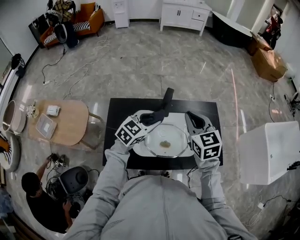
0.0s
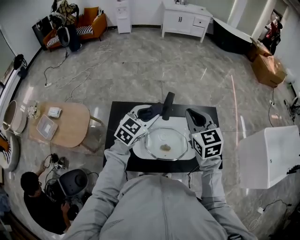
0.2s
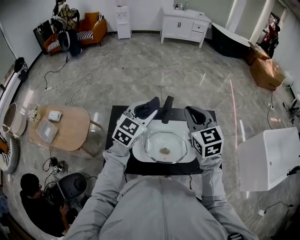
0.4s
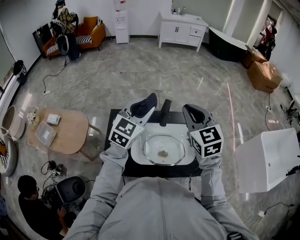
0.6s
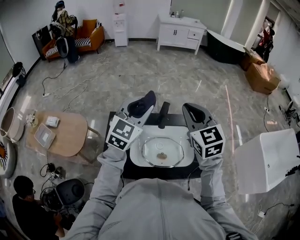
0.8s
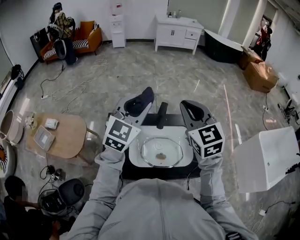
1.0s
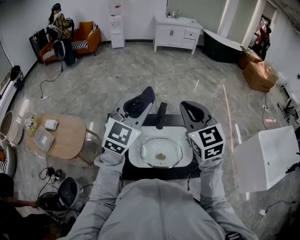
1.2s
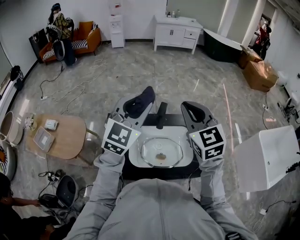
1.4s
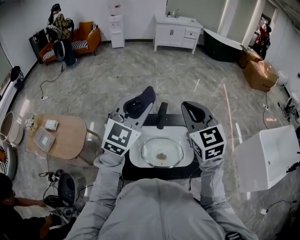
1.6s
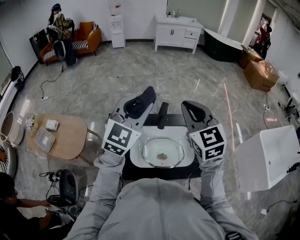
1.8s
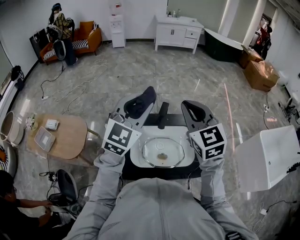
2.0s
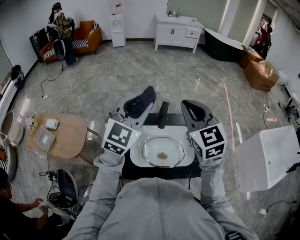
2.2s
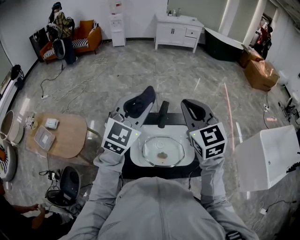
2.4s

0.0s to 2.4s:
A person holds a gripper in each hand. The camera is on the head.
0.0s to 1.2s: The right gripper moves upward, about 15 cm. The left gripper is displaced upward by about 25 cm, and rotates approximately 30 degrees.
1.2s to 2.4s: Both grippers stay put.

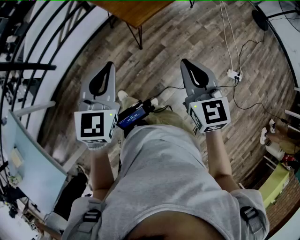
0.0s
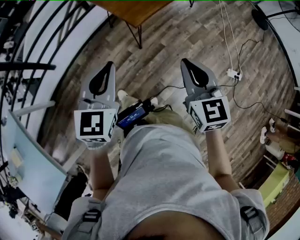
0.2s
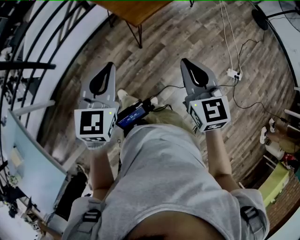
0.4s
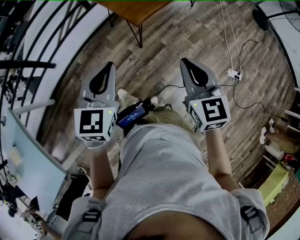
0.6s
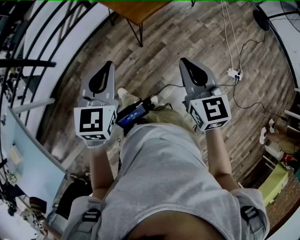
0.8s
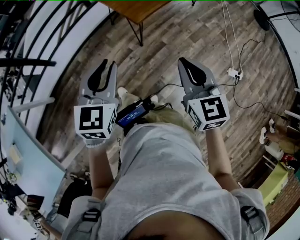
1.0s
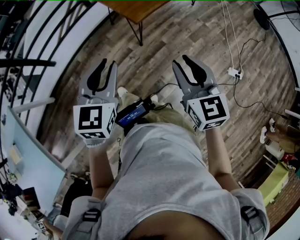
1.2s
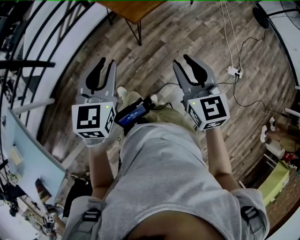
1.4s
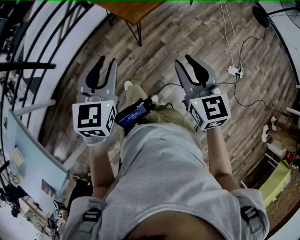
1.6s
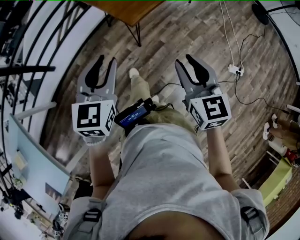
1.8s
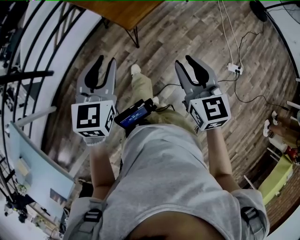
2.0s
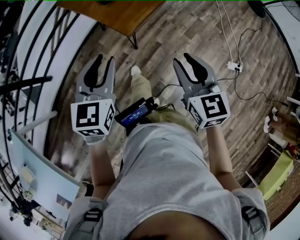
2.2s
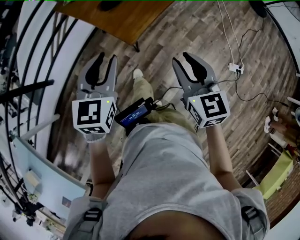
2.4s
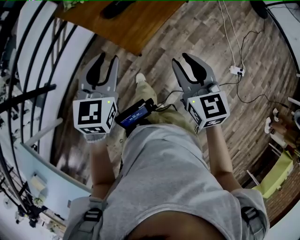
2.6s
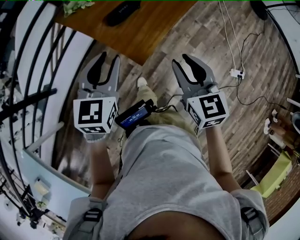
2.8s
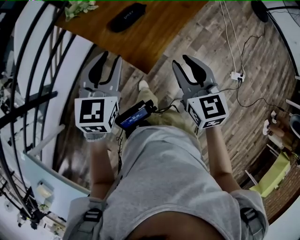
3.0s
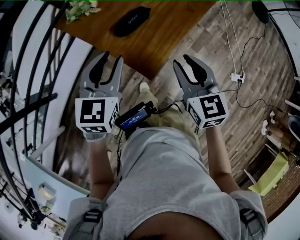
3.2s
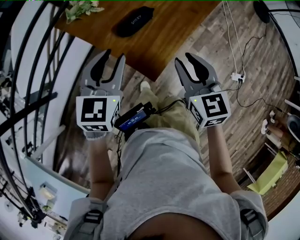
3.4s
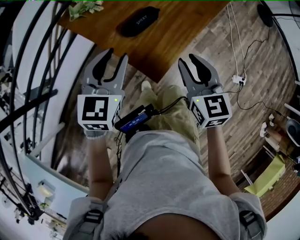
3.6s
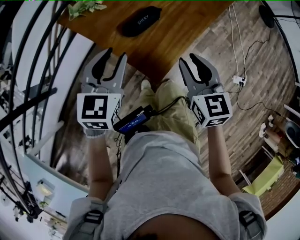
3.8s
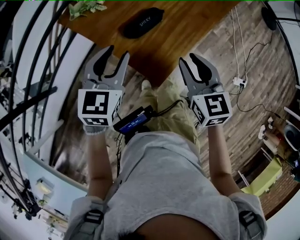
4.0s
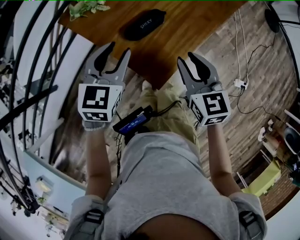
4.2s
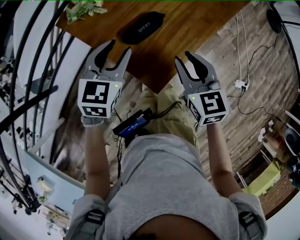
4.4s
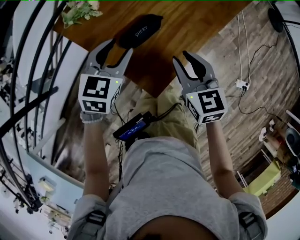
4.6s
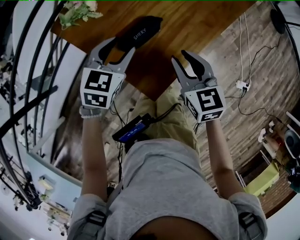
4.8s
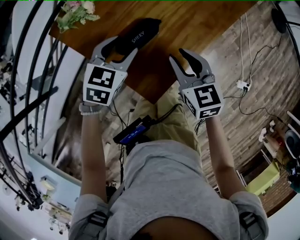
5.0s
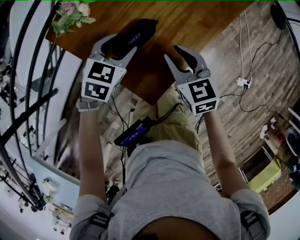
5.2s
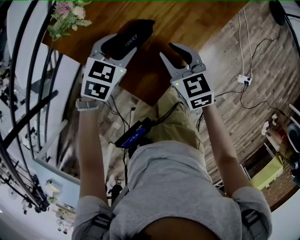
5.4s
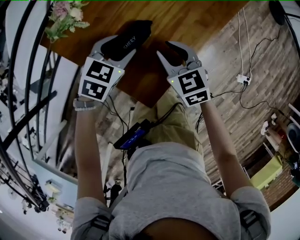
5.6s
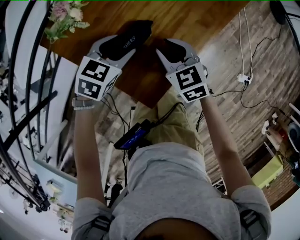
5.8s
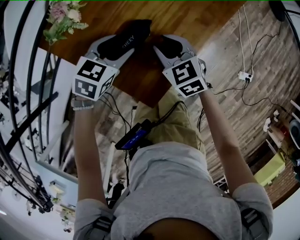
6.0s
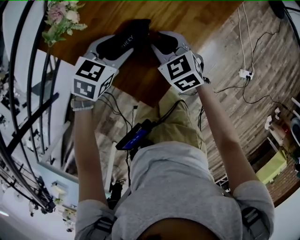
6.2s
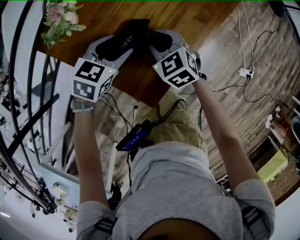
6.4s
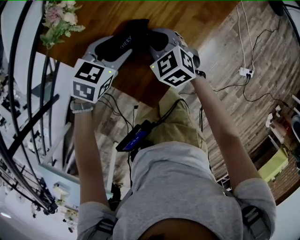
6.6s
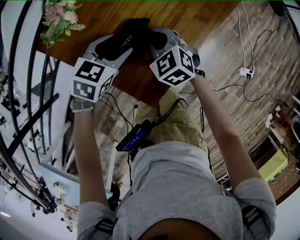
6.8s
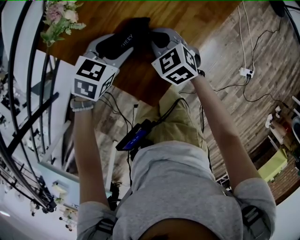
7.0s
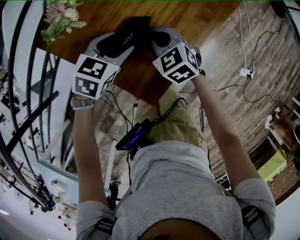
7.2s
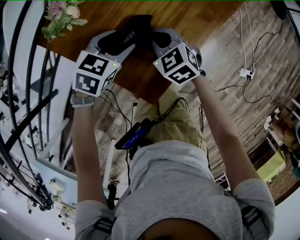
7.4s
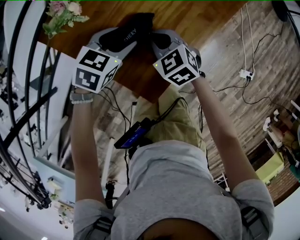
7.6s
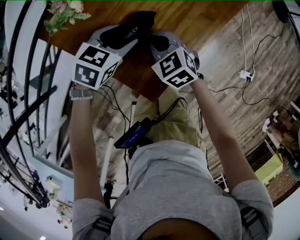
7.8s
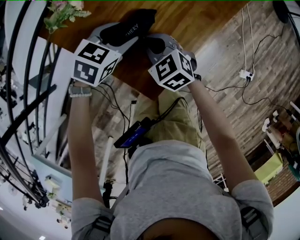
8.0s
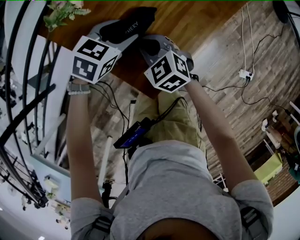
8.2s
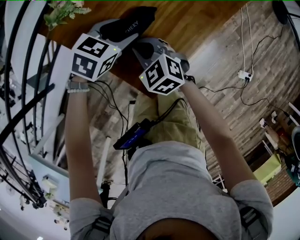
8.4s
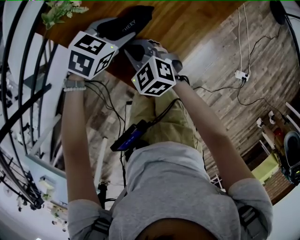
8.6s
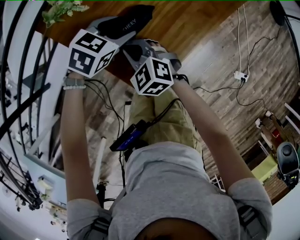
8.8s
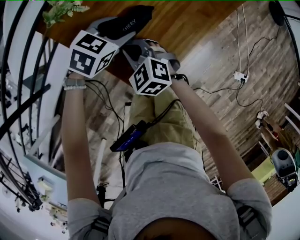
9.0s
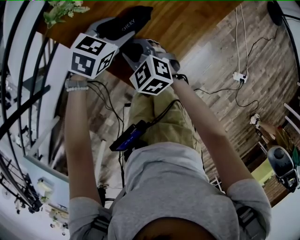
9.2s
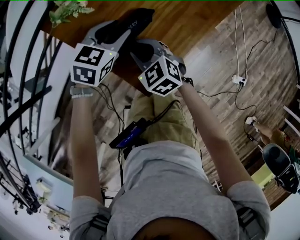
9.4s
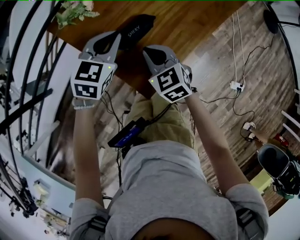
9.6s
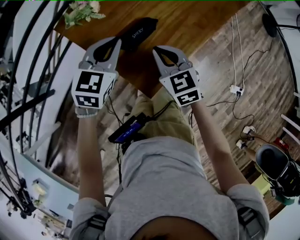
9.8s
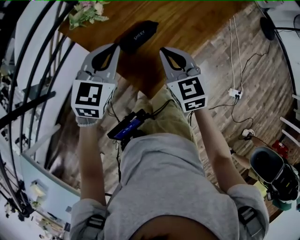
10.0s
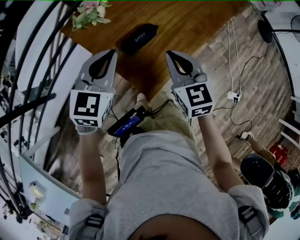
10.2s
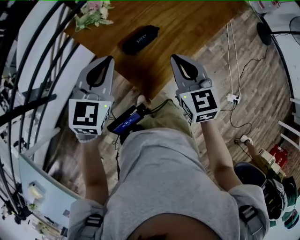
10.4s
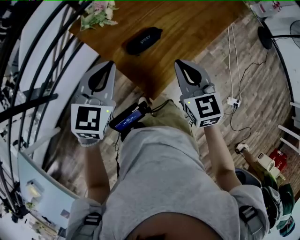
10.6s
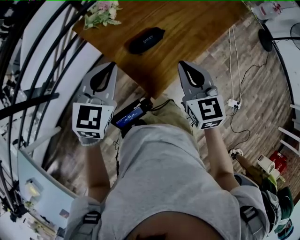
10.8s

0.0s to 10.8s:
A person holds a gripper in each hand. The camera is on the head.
0.0s to 1.6s: The right gripper opens its fingers; the left gripper opens up.
1.6s to 3.0s: The two grippers go approximately 25 cm forward.
3.0s to 4.6s: The two grippers go some 15 cm forward and downward.
4.6s to 6.2s: The left gripper moves downward, roughly 5 cm, and turns by some 20 degrees. Meanwhile the right gripper travels downward and forward by about 10 cm.
6.2s to 7.8s: The right gripper closes.
7.8s to 9.2s: The right gripper moves backward, about 5 cm, and opens up.
9.2s to 10.8s: The right gripper is displaced upward and to the right by about 25 cm, swivels approximately 30 degrees, and closes its fingers. The left gripper shifts some 25 cm upward, backward and to the left, swivels about 30 degrees, and closes its fingers.

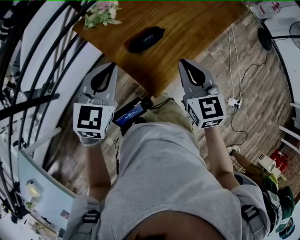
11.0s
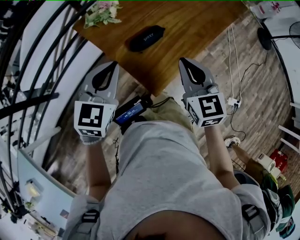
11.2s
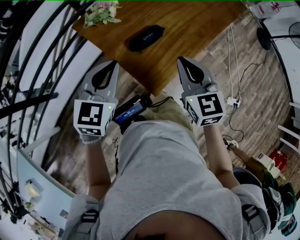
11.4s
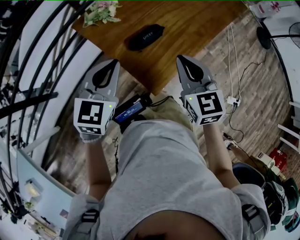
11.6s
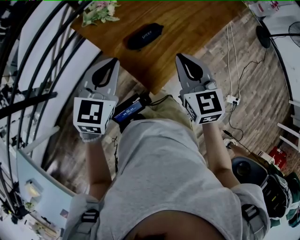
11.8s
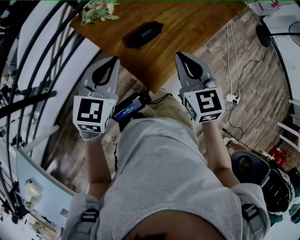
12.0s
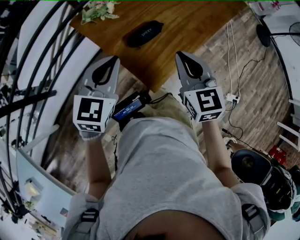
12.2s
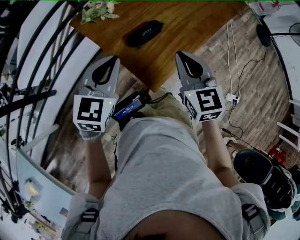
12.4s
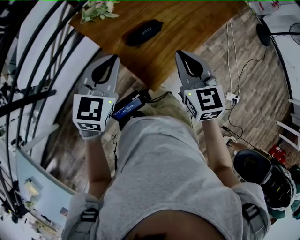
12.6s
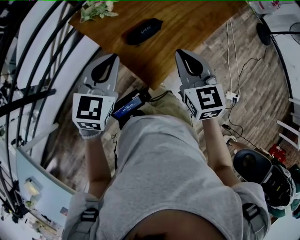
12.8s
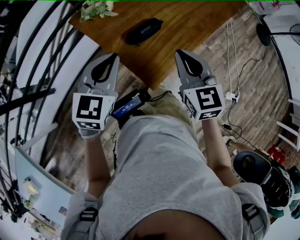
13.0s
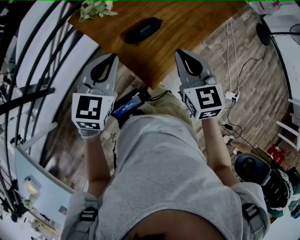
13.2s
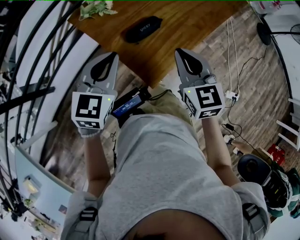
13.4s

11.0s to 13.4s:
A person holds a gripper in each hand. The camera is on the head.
11.0s to 12.2s: The two grippers keep their place.
12.2s to 13.4s: Neither gripper changes place.

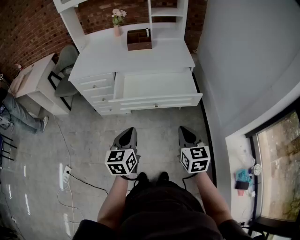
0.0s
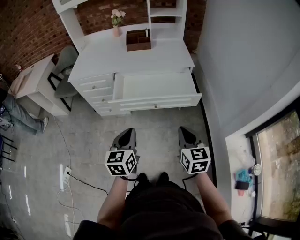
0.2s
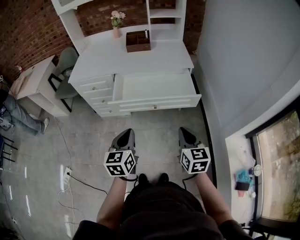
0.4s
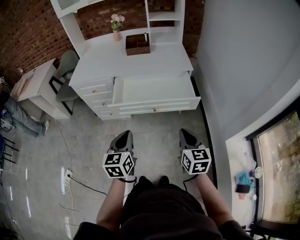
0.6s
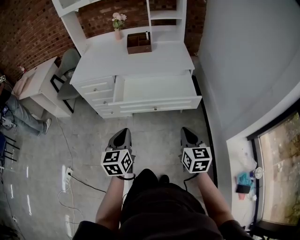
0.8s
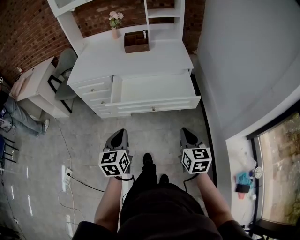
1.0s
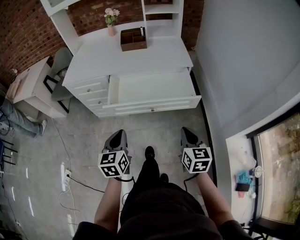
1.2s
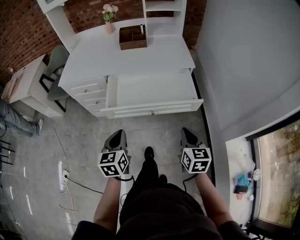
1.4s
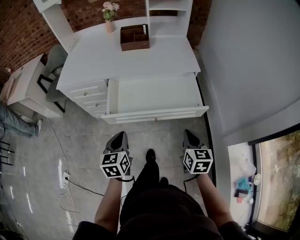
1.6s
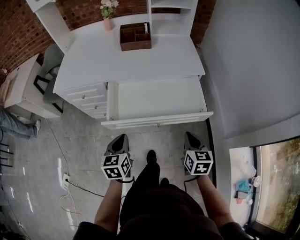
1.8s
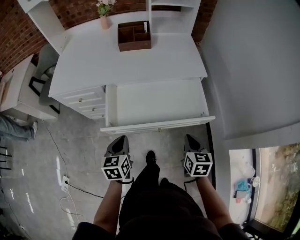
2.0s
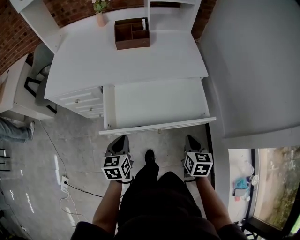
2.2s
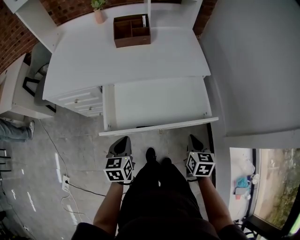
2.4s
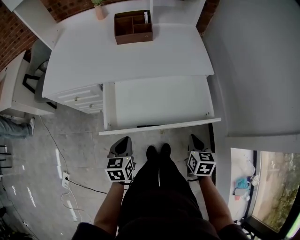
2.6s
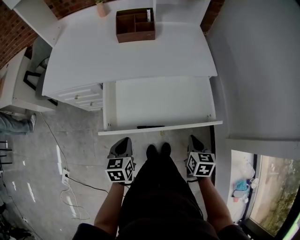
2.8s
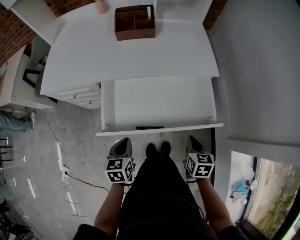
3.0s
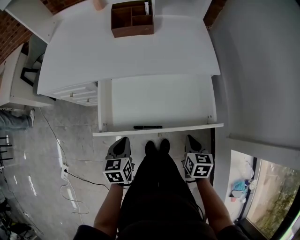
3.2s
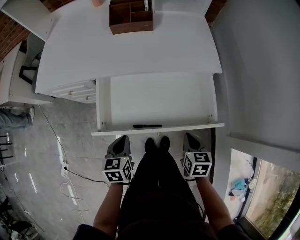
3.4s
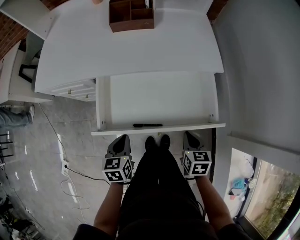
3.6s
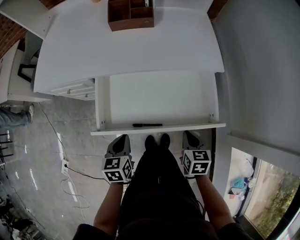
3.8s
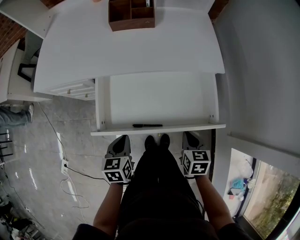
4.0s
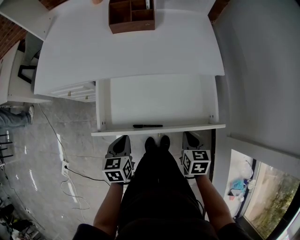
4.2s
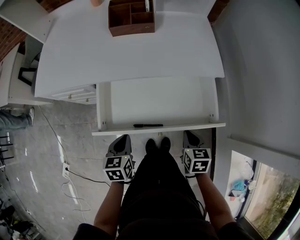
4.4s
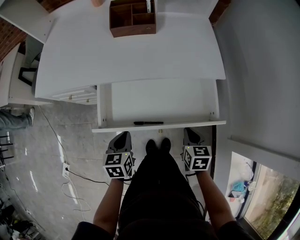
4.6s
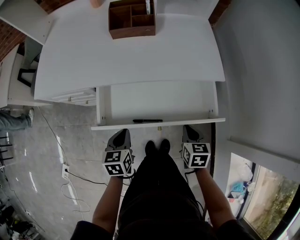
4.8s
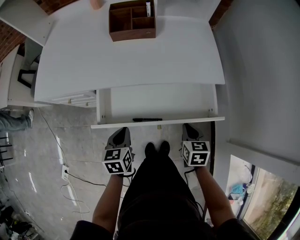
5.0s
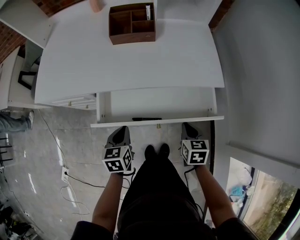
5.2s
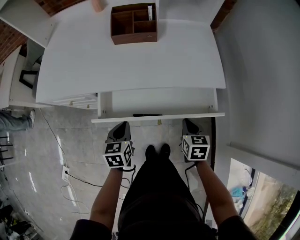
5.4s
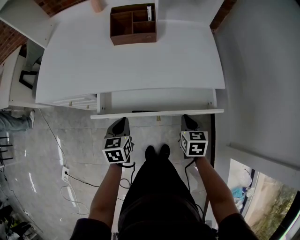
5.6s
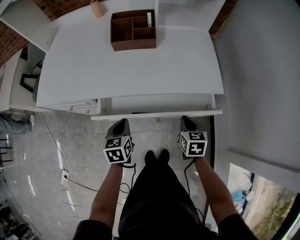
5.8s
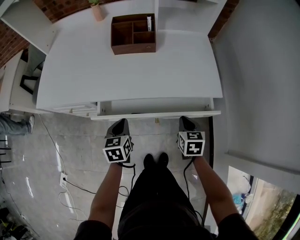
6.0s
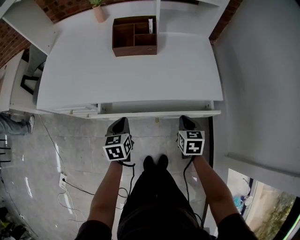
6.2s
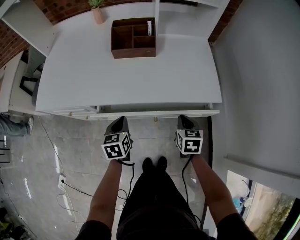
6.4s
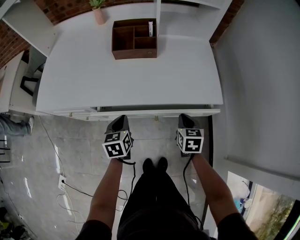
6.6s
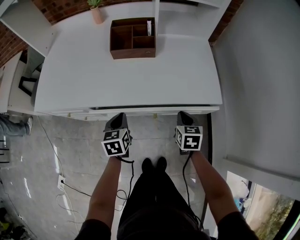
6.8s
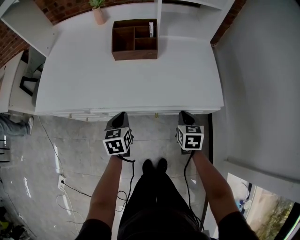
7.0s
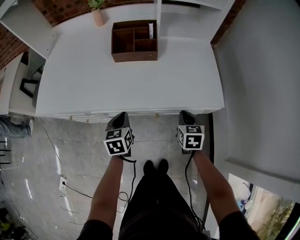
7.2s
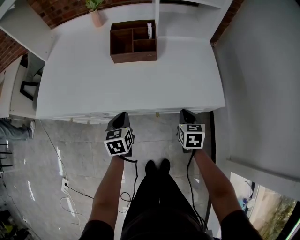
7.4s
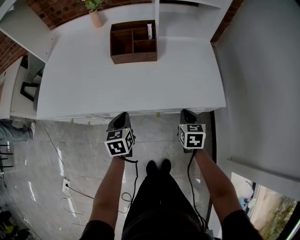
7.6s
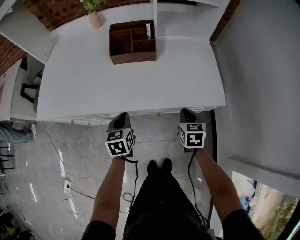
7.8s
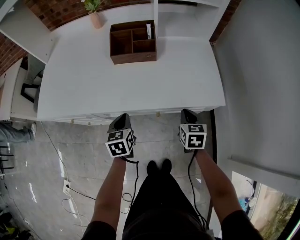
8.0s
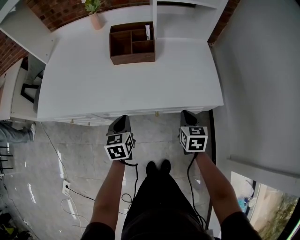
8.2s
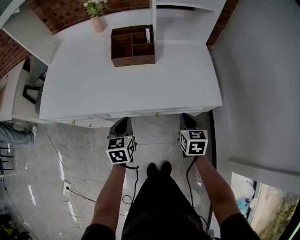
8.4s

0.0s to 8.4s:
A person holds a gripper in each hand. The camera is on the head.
0.0s to 1.4s: Both grippers move forward, approximately 10 cm.
1.4s to 2.8s: The two grippers go about 20 cm forward and downward. The right gripper swivels approximately 20 degrees.
2.8s to 4.2s: The right gripper ends up roughly 5 cm from where it was.
4.2s to 5.6s: The two grippers go about 15 cm forward.
5.6s to 7.0s: The two grippers go roughly 10 cm forward.
7.0s to 8.4s: The grippers stay close to where they were, moving slightly.
